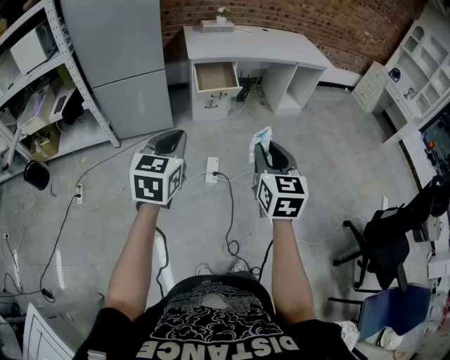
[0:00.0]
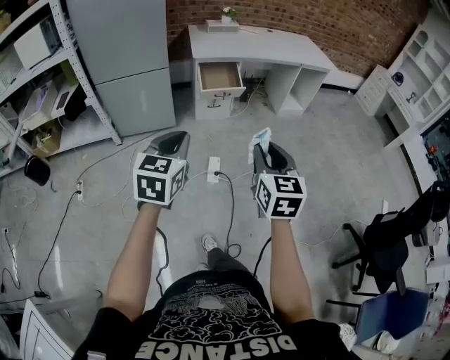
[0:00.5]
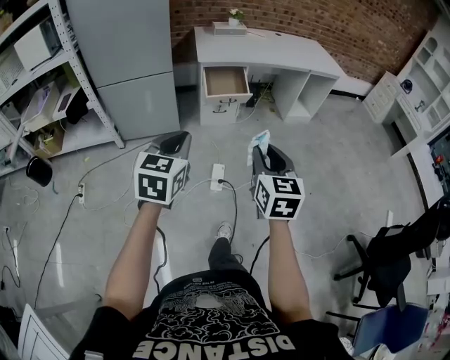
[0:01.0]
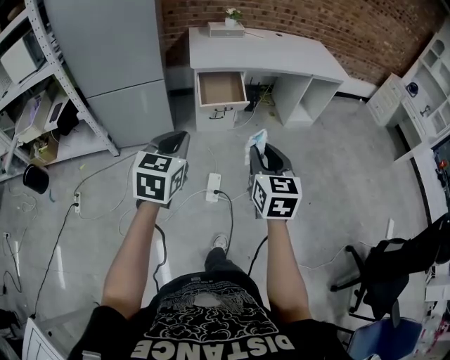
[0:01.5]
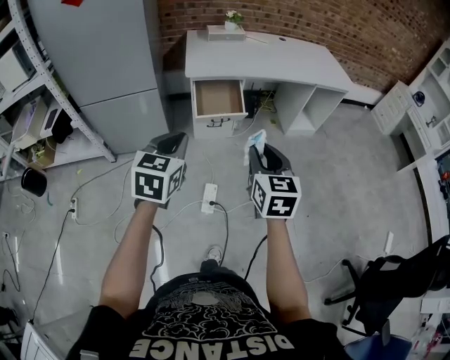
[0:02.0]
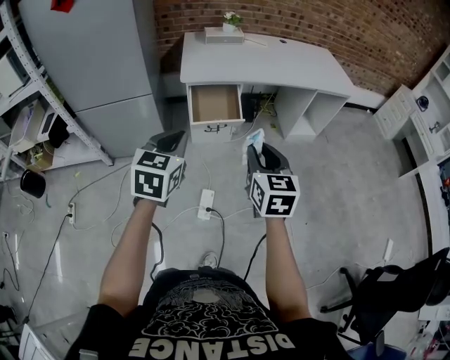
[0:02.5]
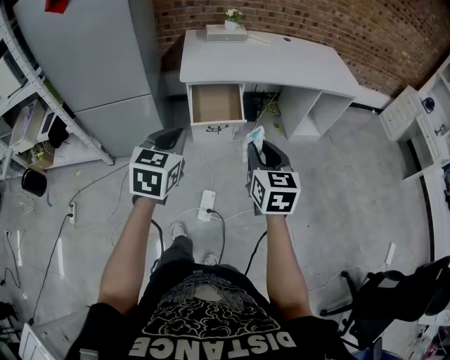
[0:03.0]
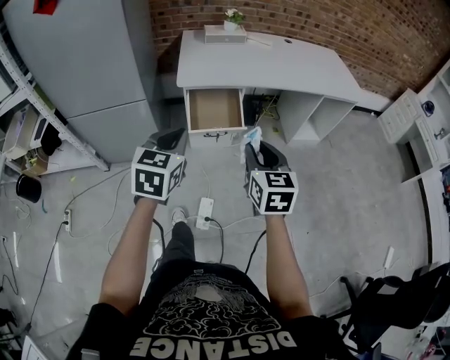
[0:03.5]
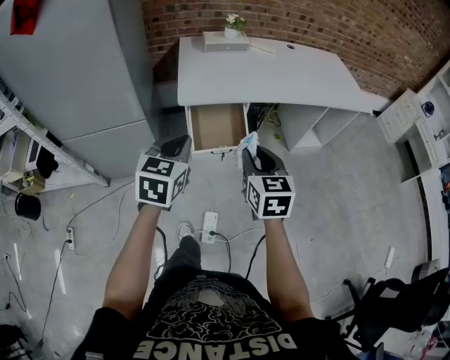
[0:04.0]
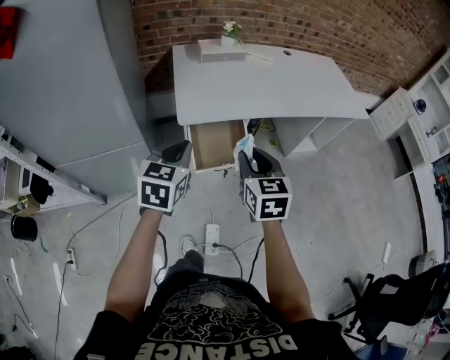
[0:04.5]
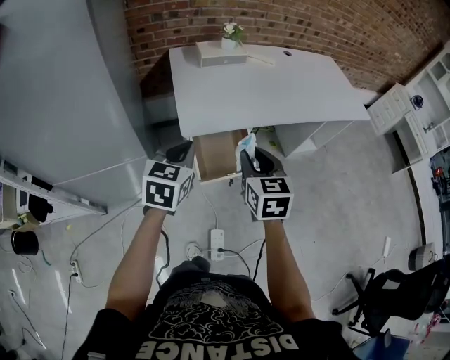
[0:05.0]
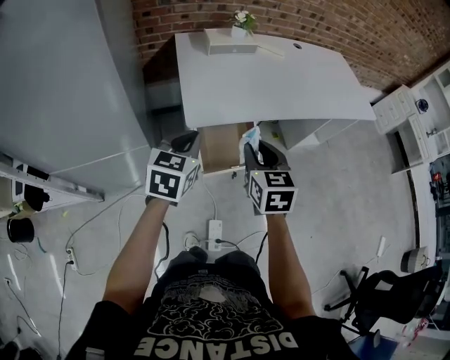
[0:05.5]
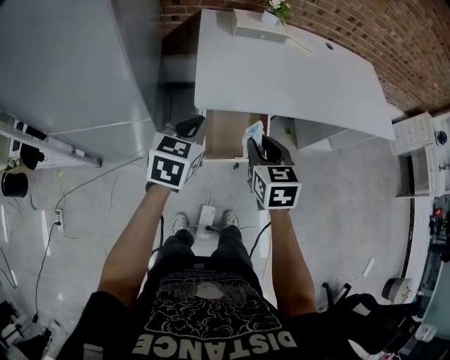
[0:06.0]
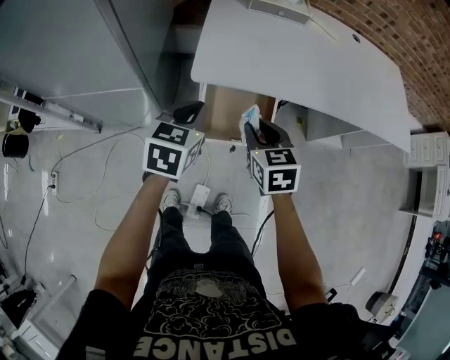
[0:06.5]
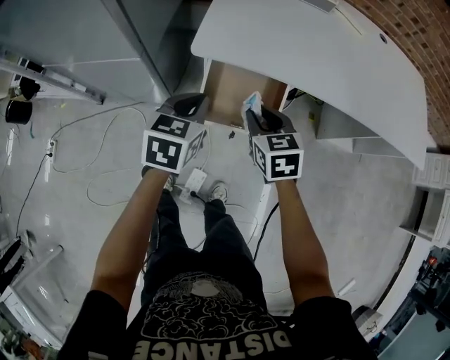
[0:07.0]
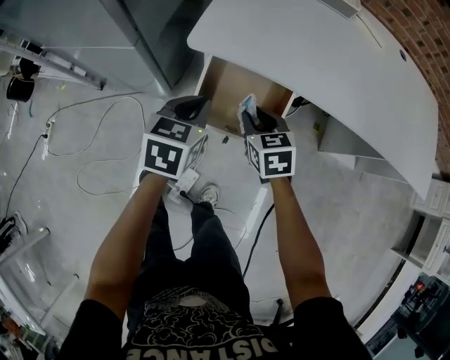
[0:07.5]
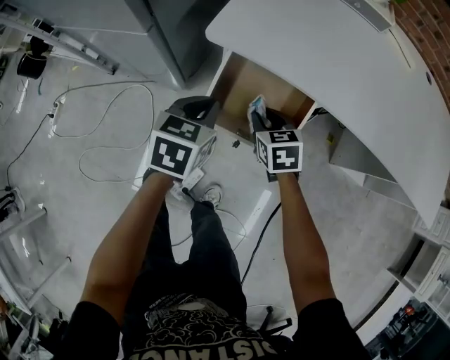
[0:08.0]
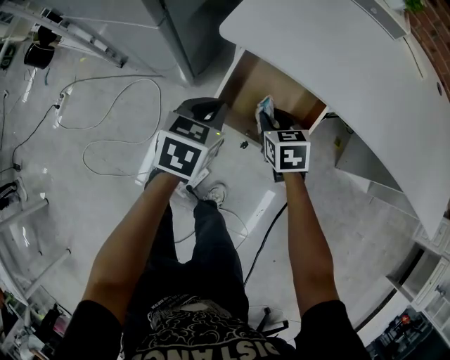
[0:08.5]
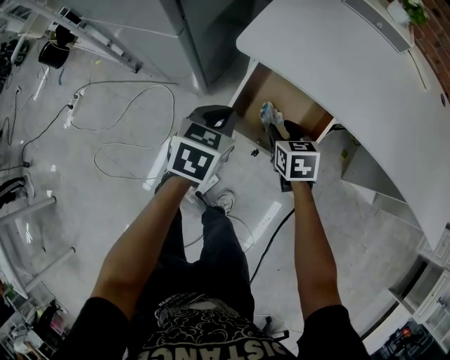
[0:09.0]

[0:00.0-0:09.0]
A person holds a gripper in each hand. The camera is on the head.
0:00.0 to 0:02.0: The grippers both shift forward by some 25 cm.
0:02.0 to 0:04.5: Both grippers travel together forward, about 30 cm.
0:04.5 to 0:07.0: Both grippers travel together downward, some 20 cm. The right gripper turns by some 30 degrees; the left gripper swivels approximately 20 degrees.
0:07.0 to 0:09.0: The right gripper moves downward, some 15 cm. Meanwhile the left gripper is displaced downward by about 10 cm.

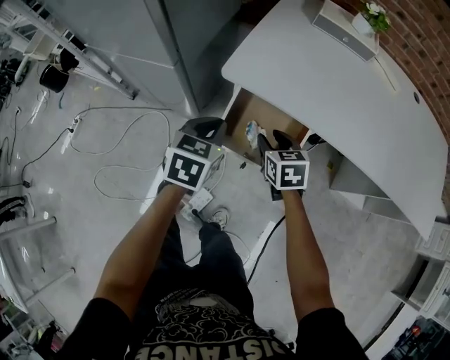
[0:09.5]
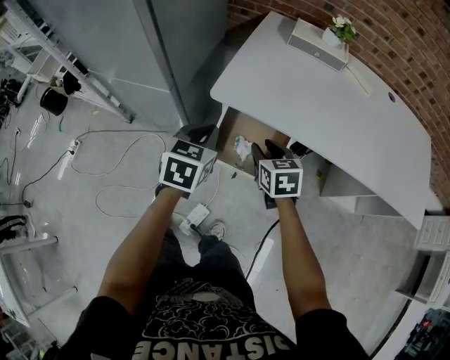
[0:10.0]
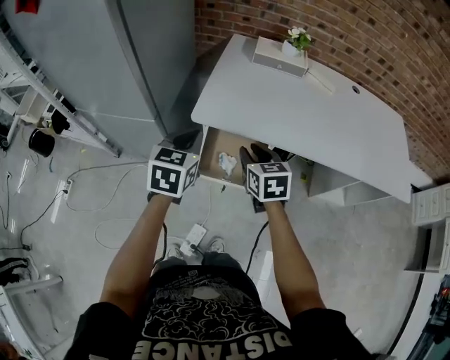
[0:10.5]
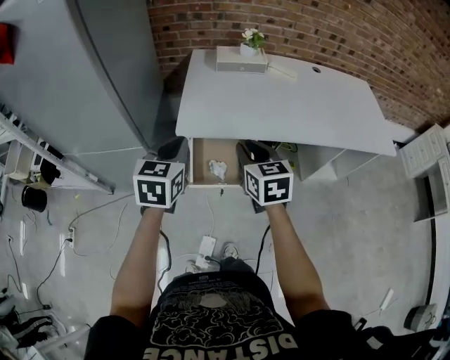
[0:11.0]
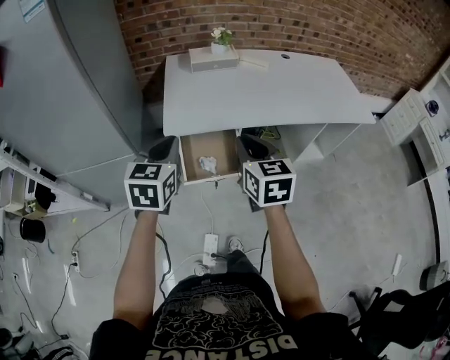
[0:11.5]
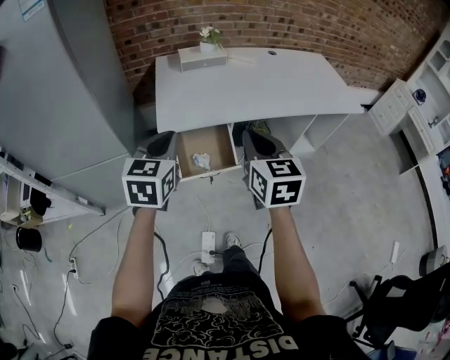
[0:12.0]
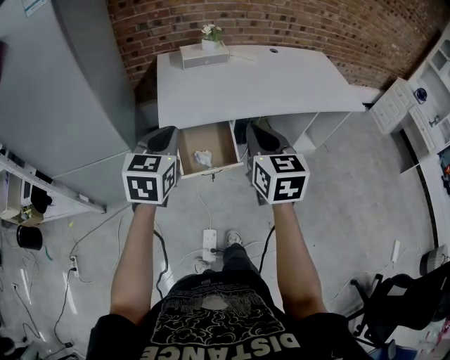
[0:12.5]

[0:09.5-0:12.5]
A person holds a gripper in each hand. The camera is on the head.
0:09.5 to 0:11.0: The grippers both shift upward by some 20 cm. The right gripper turns by approximately 30 degrees, and closes up; the left gripper changes its angle by some 20 degrees.
0:11.0 to 0:12.5: The left gripper shifts about 5 cm backward. The right gripper heads backward and upward, covering approximately 15 cm, and turns by roughly 20 degrees.

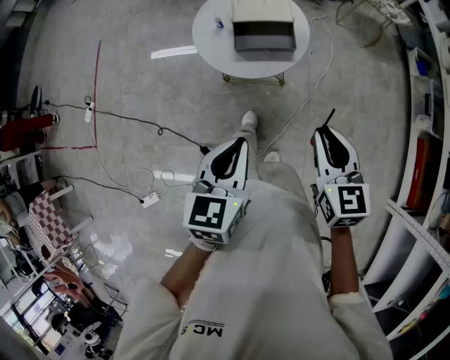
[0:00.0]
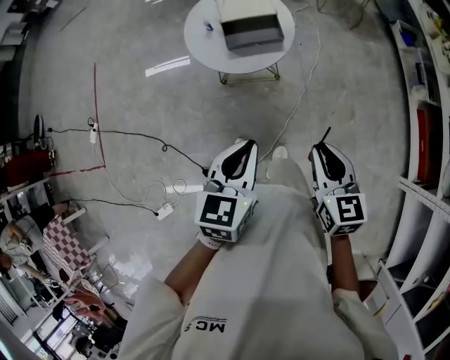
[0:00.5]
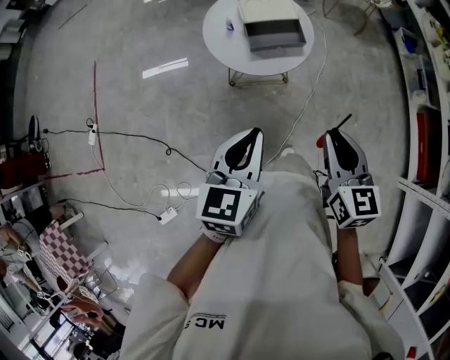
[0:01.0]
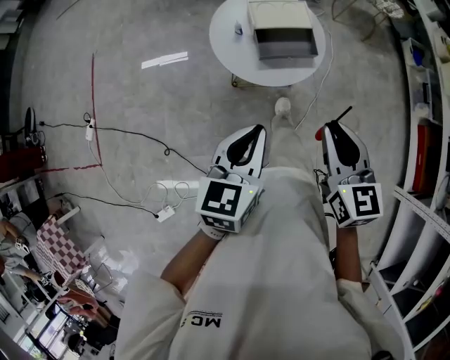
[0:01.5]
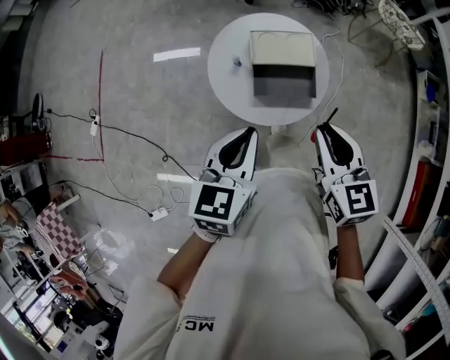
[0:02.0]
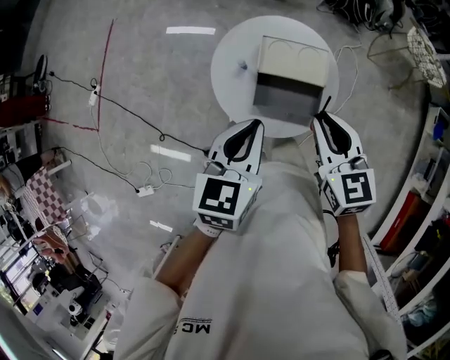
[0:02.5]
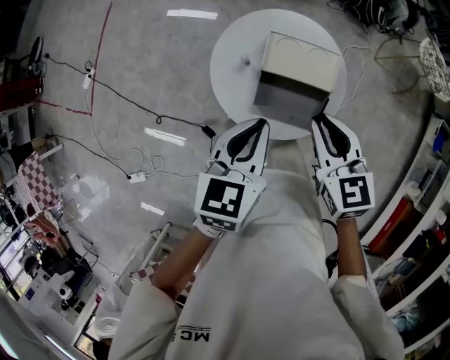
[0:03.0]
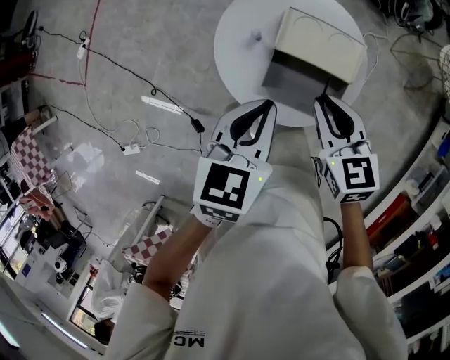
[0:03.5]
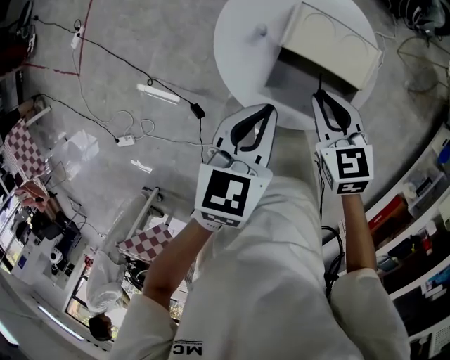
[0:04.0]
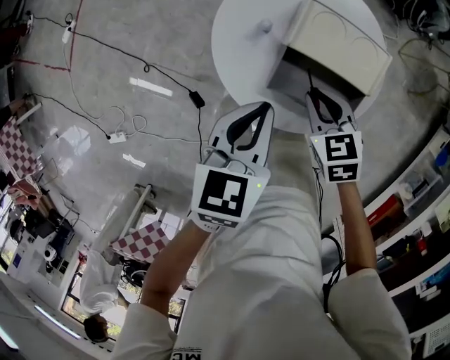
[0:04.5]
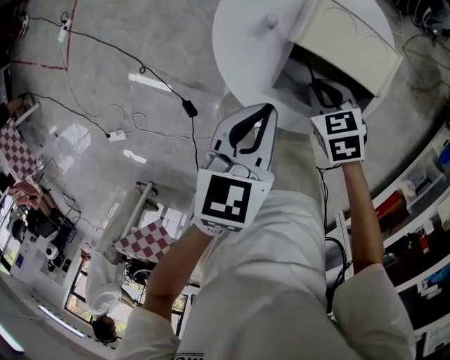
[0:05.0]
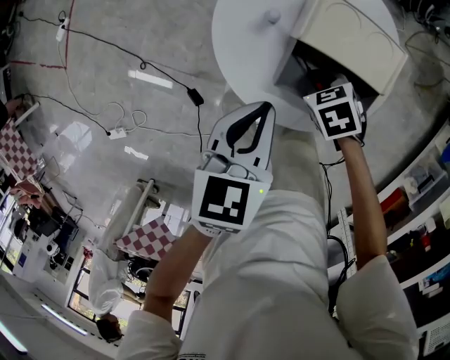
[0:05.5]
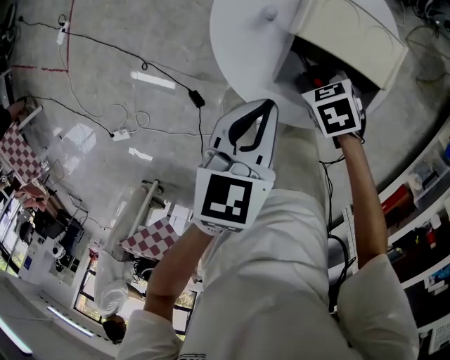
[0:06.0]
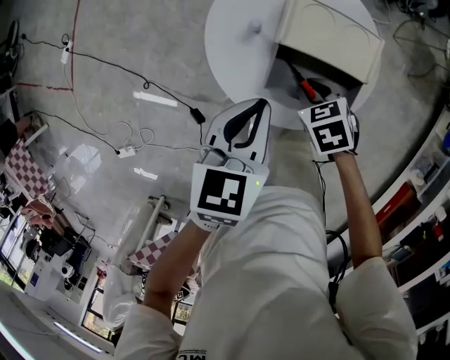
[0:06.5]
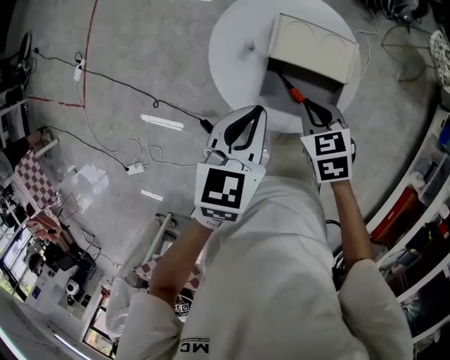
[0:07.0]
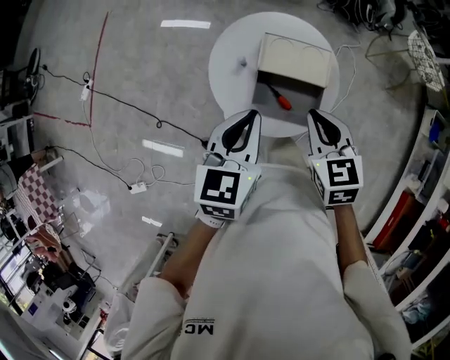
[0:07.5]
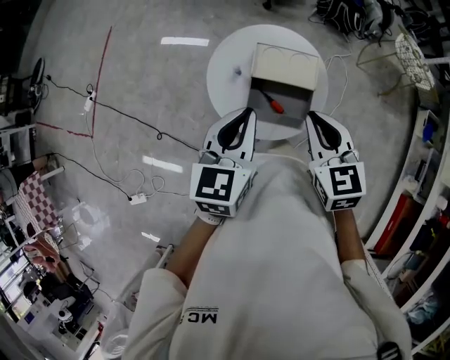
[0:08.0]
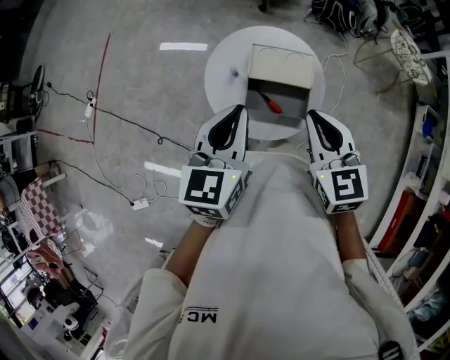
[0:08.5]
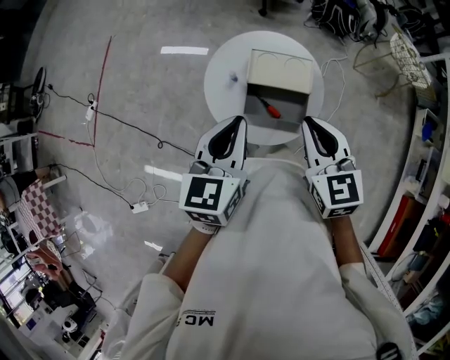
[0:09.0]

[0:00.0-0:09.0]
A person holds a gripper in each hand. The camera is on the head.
0:00.0 to 0:02.0: The right gripper travels forward and to the left by some 20 cm, while the left gripper goes roughly 20 cm forward.
0:02.0 to 0:04.5: The right gripper is displaced downward and forward by approximately 30 cm, and rotates some 40 degrees. Meanwhile the left gripper heads downward and forward, covering about 20 cm, and turns by some 20 degrees.
0:04.5 to 0:07.0: Both grippers travel together upward, some 5 cm.
0:07.0 to 0:09.0: The right gripper heads upward, covering about 20 cm, and tips its fingers upward by approximately 30 degrees; the left gripper is displaced upward by roughly 10 cm.

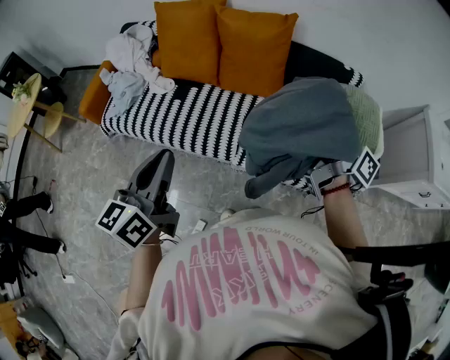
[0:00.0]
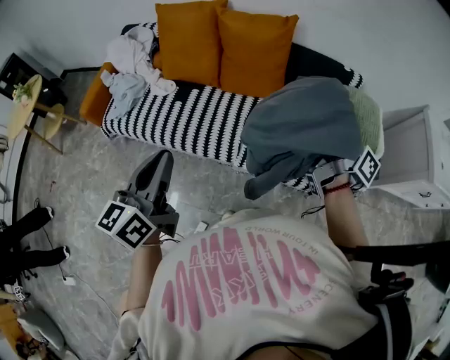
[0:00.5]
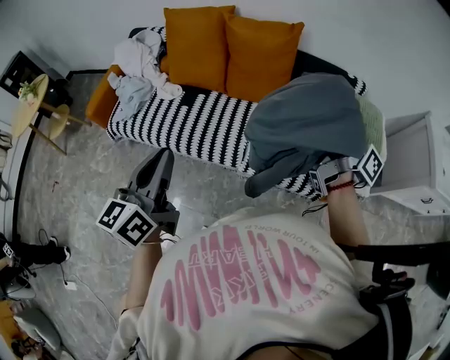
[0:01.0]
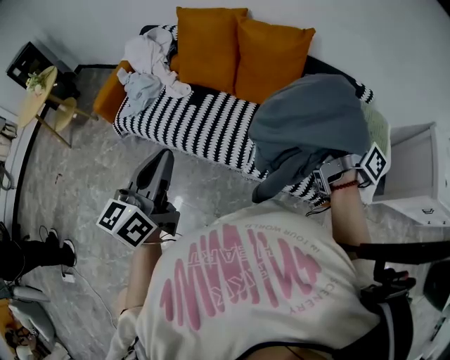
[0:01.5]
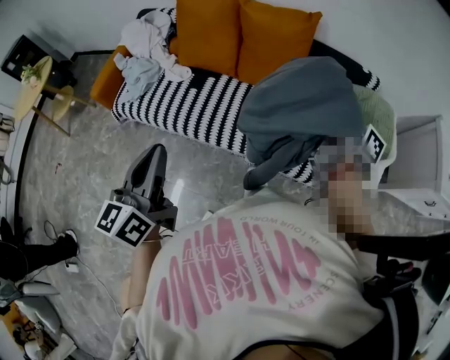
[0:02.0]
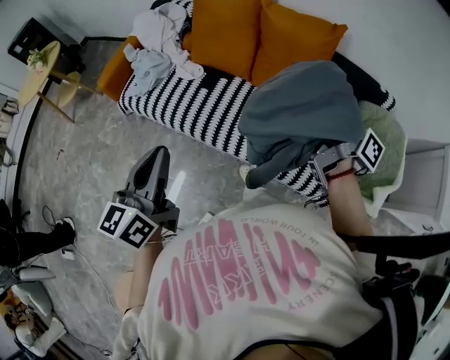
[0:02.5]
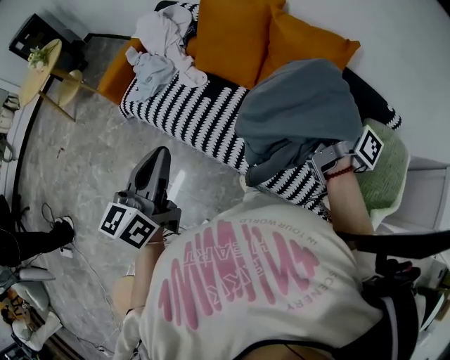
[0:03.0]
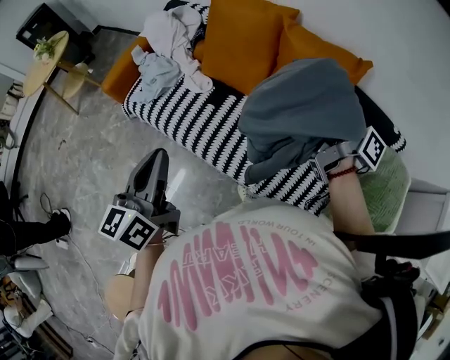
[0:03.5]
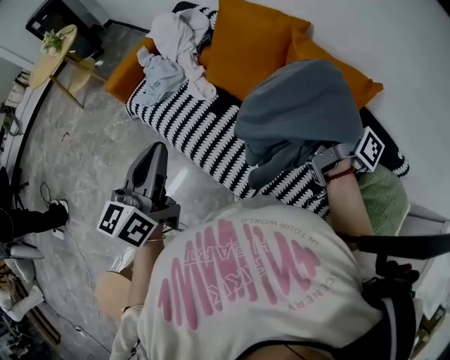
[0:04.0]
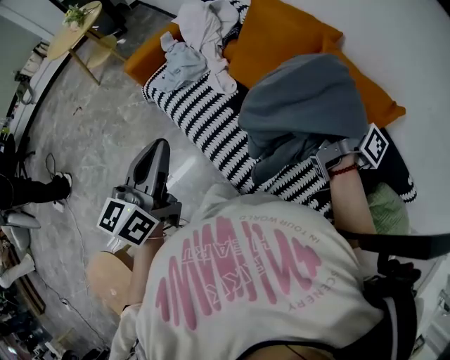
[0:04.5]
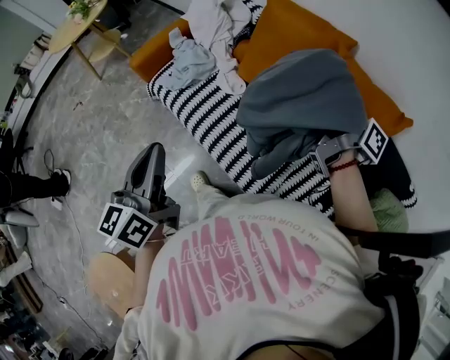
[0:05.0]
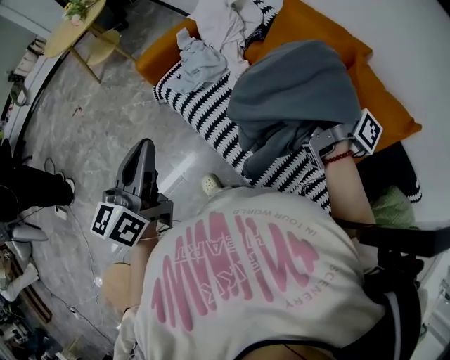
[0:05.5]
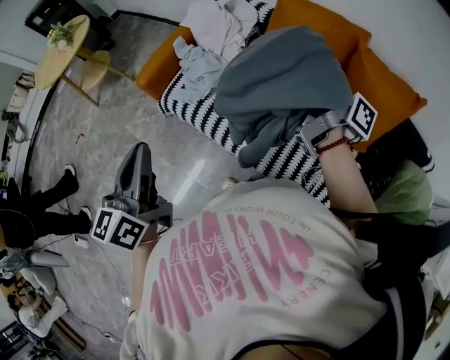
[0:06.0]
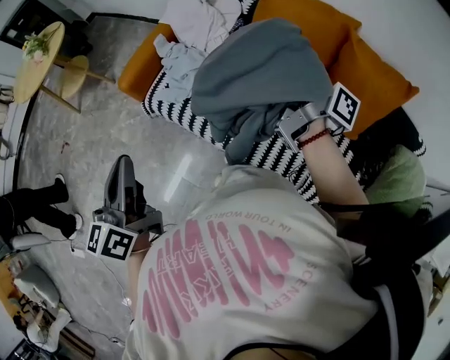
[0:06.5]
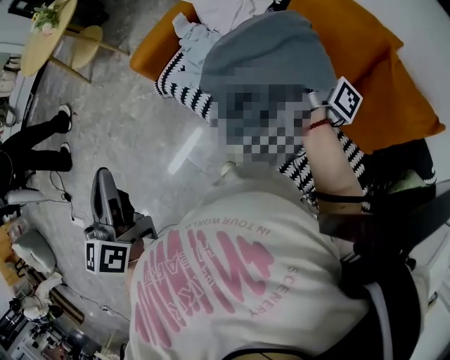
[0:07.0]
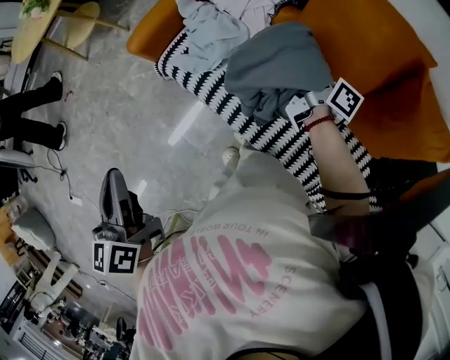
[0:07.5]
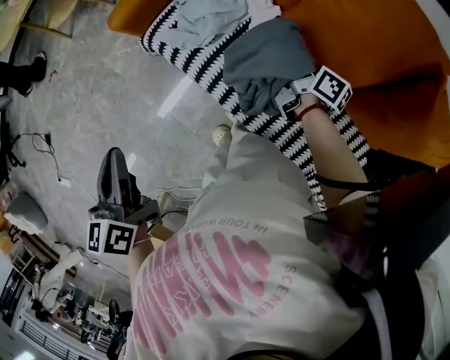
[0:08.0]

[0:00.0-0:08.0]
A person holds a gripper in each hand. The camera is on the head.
0:00.0 to 0:02.0: The left gripper moves about 5 cm.
0:02.0 to 0:04.0: The left gripper shifts by approximately 20 cm.
0:04.0 to 0:06.0: The left gripper moves roughly 25 cm.
0:06.0 to 0:08.0: The left gripper travels downward by some 15 cm, and swivels about 30 degrees.
